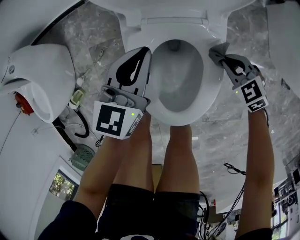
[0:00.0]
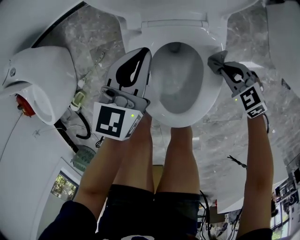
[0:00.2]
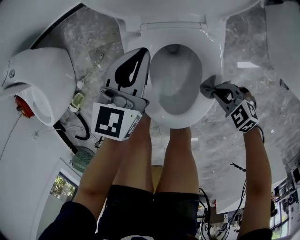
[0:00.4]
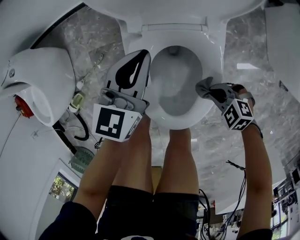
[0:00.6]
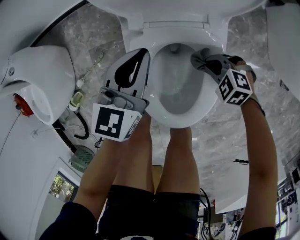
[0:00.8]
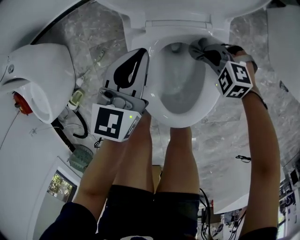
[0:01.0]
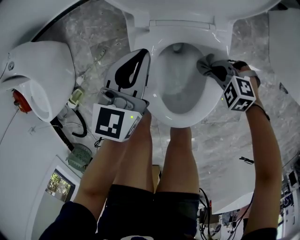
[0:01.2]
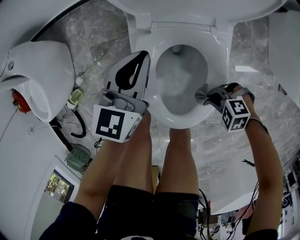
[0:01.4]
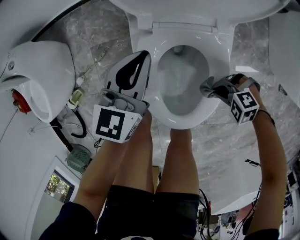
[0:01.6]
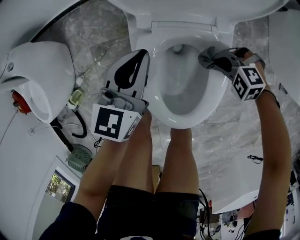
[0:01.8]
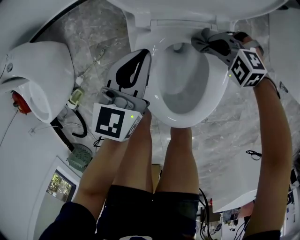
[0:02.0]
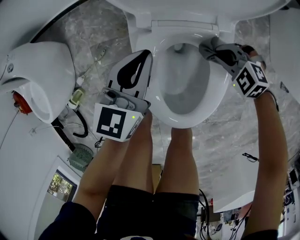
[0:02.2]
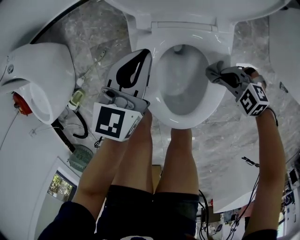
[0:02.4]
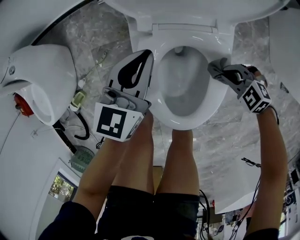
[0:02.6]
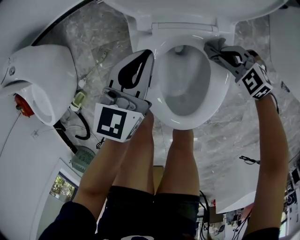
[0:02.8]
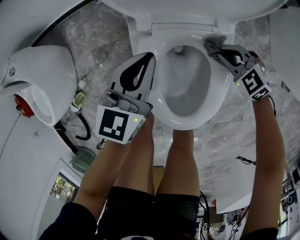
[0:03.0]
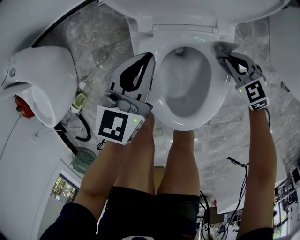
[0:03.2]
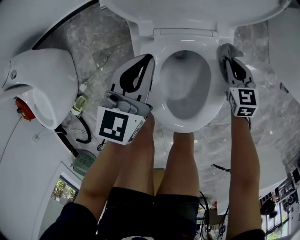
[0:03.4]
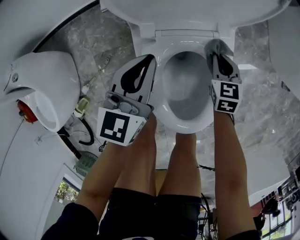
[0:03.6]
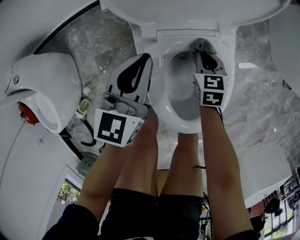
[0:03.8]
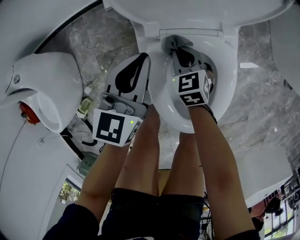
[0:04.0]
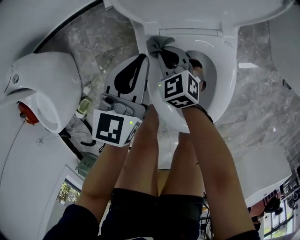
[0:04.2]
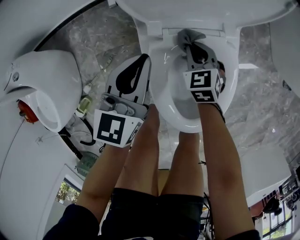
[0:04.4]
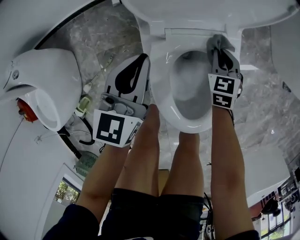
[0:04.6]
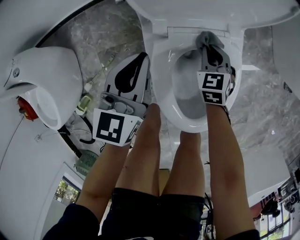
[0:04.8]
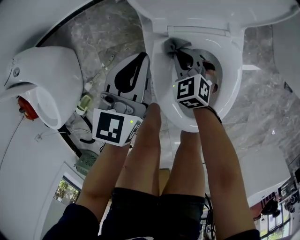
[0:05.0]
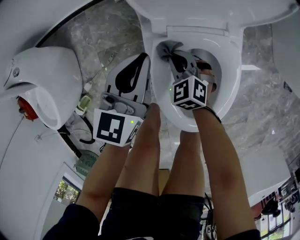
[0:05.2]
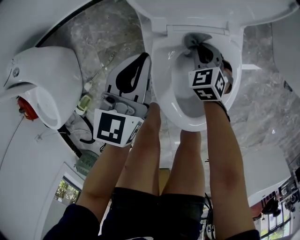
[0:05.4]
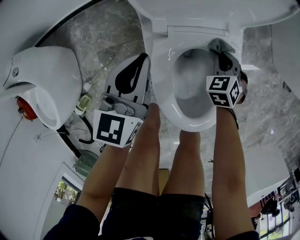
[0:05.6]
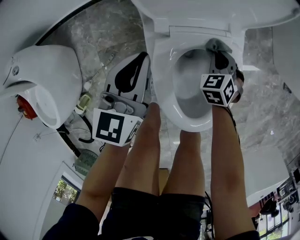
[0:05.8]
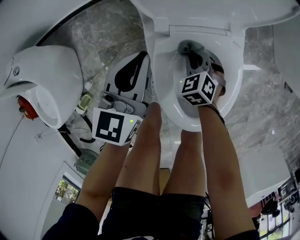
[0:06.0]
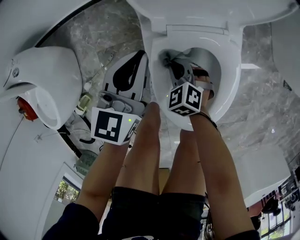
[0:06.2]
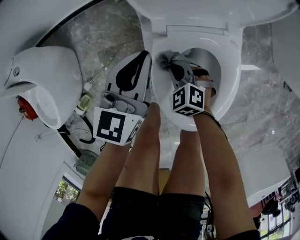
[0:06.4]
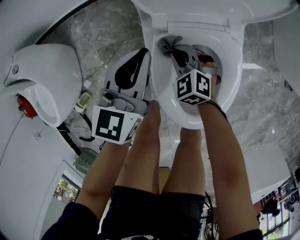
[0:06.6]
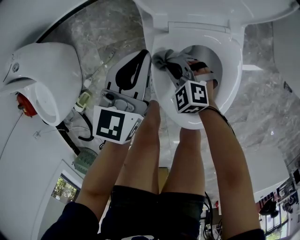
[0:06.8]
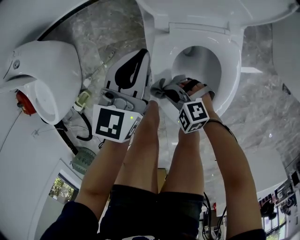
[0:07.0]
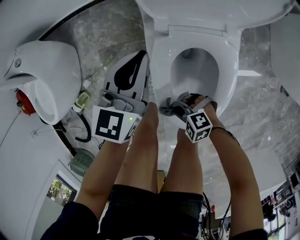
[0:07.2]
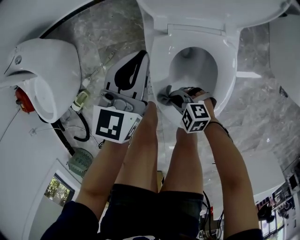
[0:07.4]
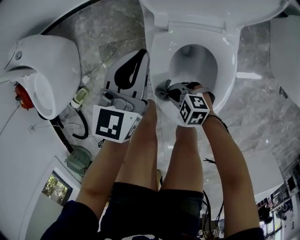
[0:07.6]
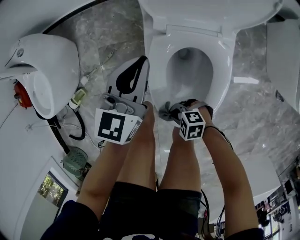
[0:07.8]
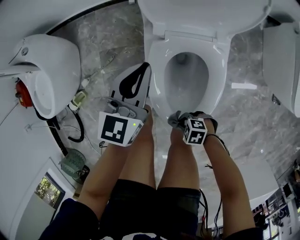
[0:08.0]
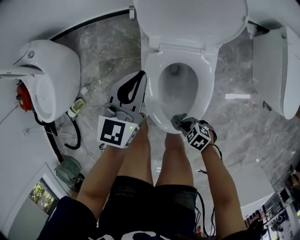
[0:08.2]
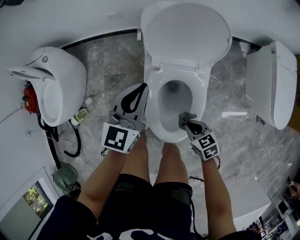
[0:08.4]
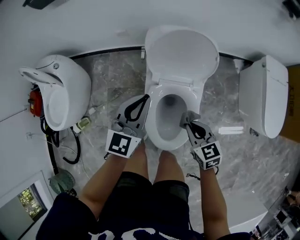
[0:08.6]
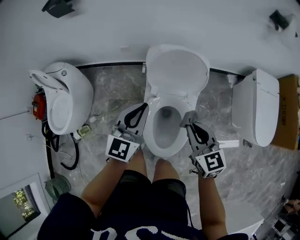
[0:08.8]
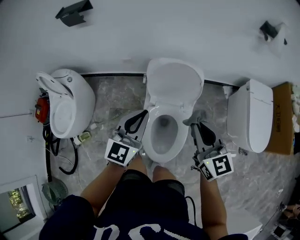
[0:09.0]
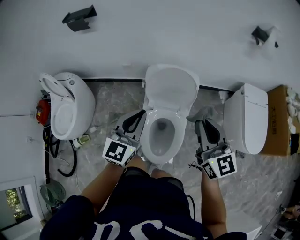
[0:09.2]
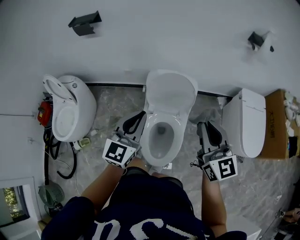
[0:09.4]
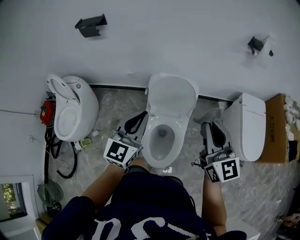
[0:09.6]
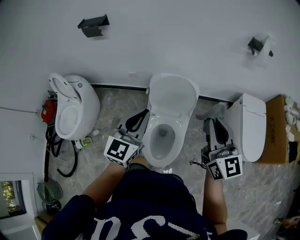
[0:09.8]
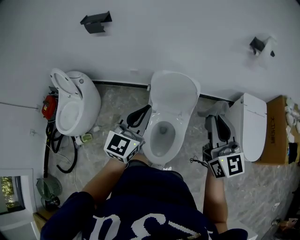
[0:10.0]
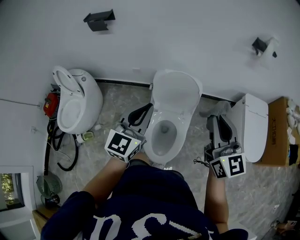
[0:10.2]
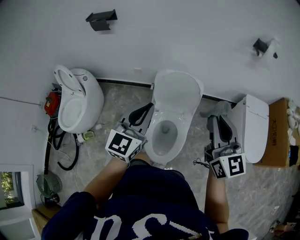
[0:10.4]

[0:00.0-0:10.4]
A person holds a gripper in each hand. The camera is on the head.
0:00.0 to 0:01.4: The right gripper shifts by some 15 cm, and rotates some 50 degrees.
0:01.4 to 0:03.0: The right gripper shifts by roughly 20 cm, and rotates approximately 40 degrees.
0:03.0 to 0:04.4: The left gripper ends up approximately 5 cm from where it was; the right gripper swivels roughly 40 degrees.
0:04.4 to 0:06.0: The right gripper moves left and right over some 15 cm, changing direction 3 times.
0:06.0 to 0:07.4: The right gripper changes place by approximately 25 cm, and changes its angle by some 50 degrees.
0:07.4 to 0:09.0: The right gripper travels upward by some 60 cm, and angles its fingers upward, by approximately 40 degrees, while the left gripper goes roughly 40 cm upward.
0:09.0 to 0:10.4: Both grippers move upward and backward, about 15 cm.

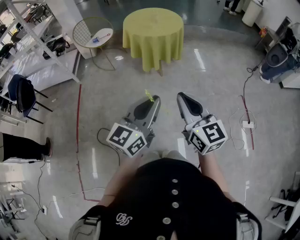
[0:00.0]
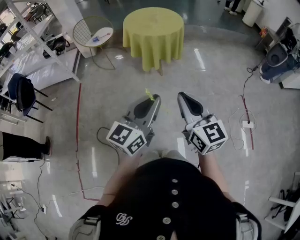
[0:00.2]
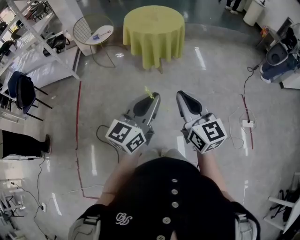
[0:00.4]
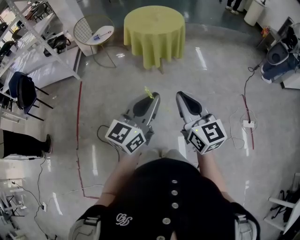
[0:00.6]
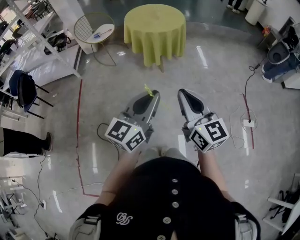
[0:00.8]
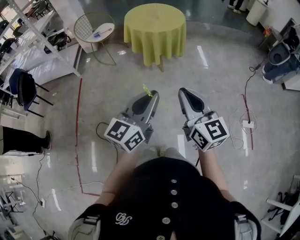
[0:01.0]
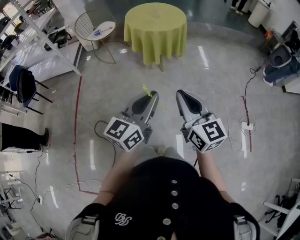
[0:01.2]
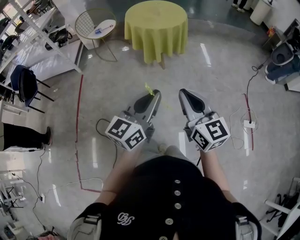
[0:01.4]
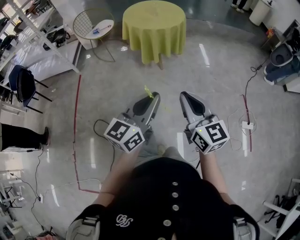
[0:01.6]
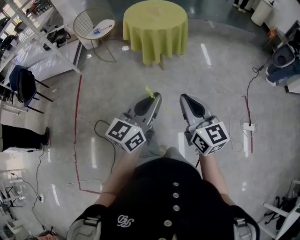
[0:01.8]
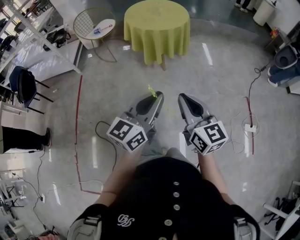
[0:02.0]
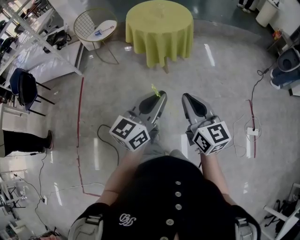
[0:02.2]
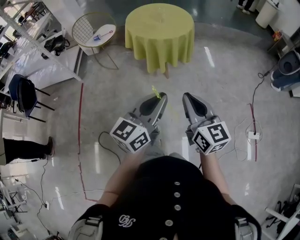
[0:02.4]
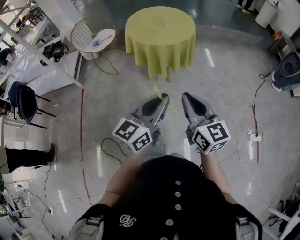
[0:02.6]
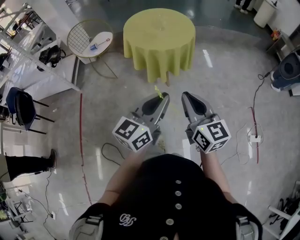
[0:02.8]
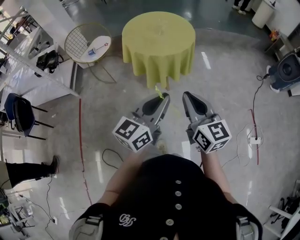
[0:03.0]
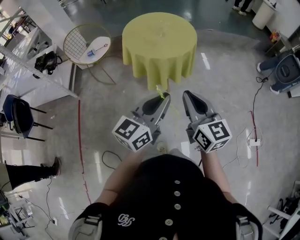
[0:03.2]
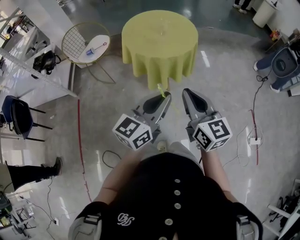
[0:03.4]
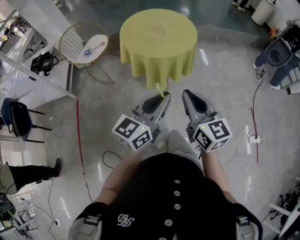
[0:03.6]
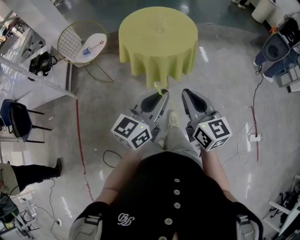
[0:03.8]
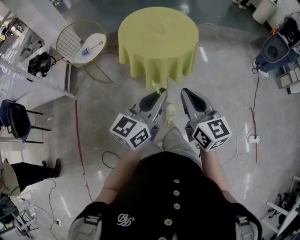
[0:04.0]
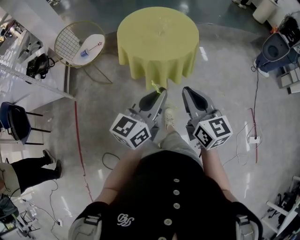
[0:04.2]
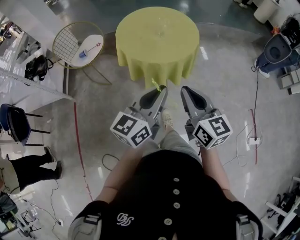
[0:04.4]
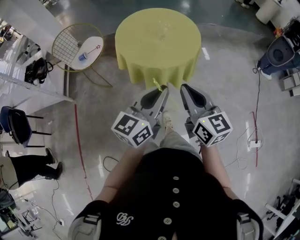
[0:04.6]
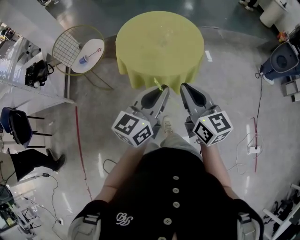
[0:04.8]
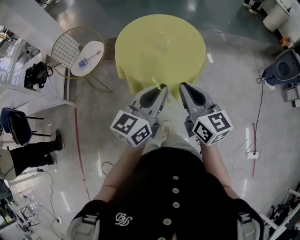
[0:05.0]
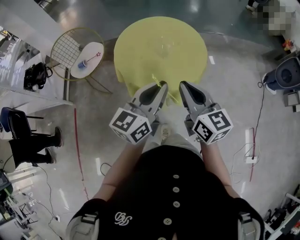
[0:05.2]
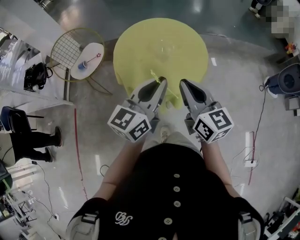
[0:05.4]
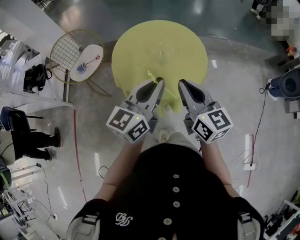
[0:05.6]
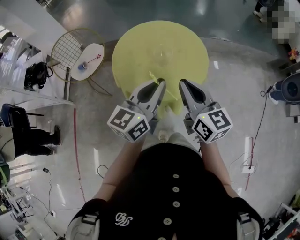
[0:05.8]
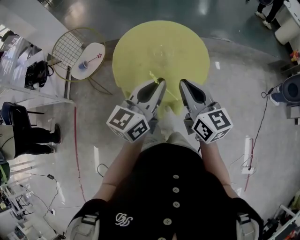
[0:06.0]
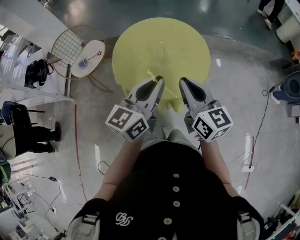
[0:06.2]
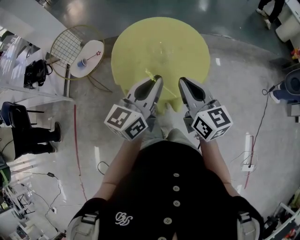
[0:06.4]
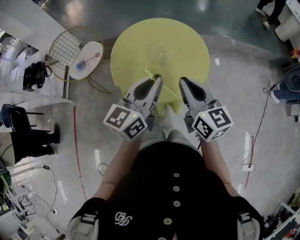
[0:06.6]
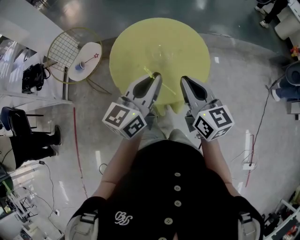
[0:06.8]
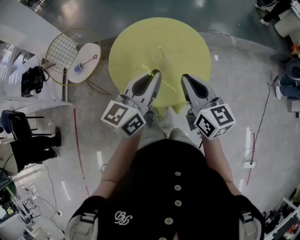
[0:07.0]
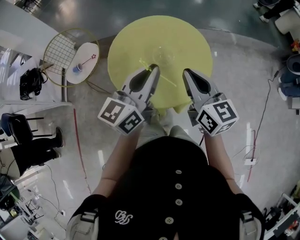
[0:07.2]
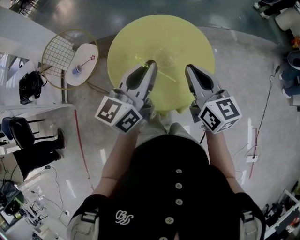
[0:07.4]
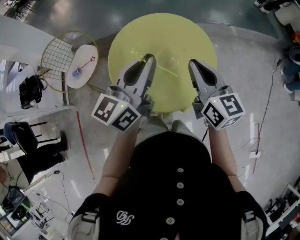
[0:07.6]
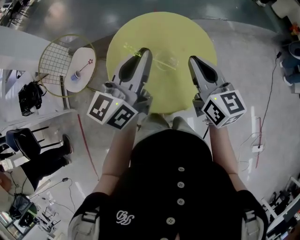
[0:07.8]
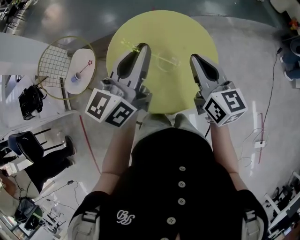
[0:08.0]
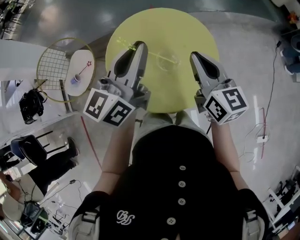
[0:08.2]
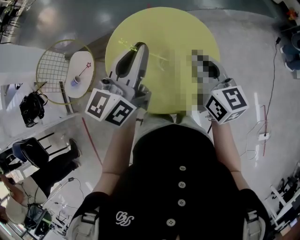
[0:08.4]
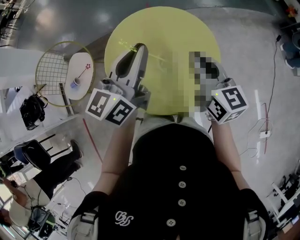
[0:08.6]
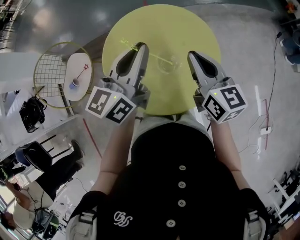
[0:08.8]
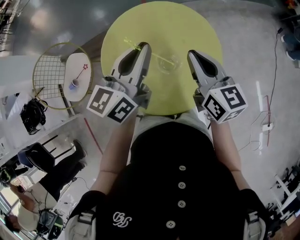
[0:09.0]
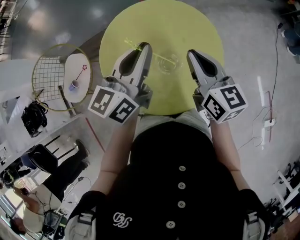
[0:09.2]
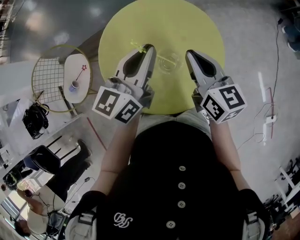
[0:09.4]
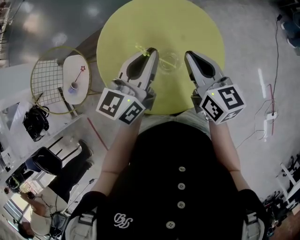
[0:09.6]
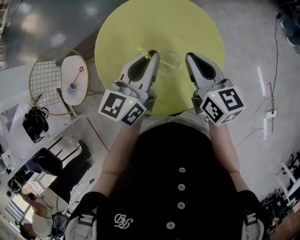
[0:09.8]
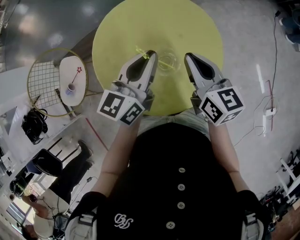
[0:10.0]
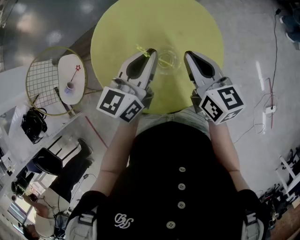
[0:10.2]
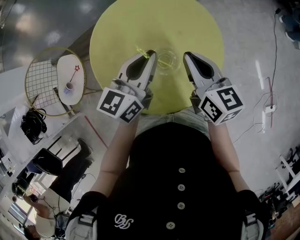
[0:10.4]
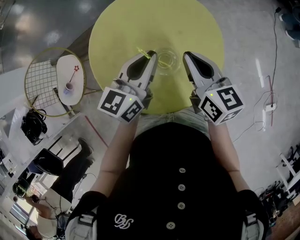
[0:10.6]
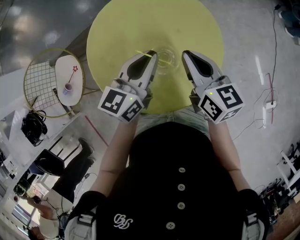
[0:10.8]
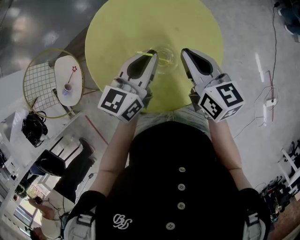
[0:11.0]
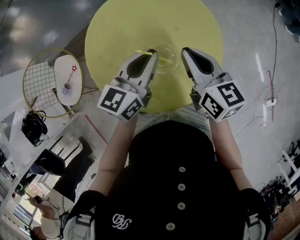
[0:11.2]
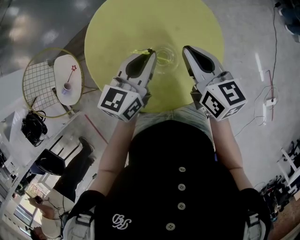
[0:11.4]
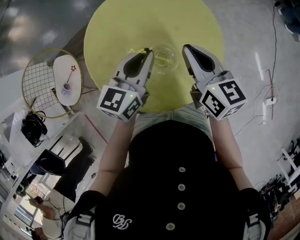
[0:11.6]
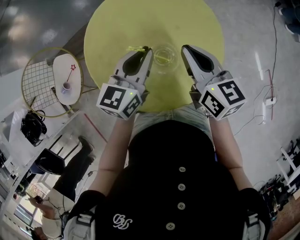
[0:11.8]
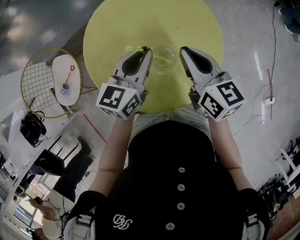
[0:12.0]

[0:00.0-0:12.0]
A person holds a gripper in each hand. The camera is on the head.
0:00.0 to 0:01.6: The right gripper travels to the right by about 5 cm; the left gripper changes place by roughly 5 cm.
0:01.6 to 0:03.0: The grippers both shift forward by approximately 30 cm.
0:03.0 to 0:04.4: Both grippers travel together forward, some 15 cm.
0:04.4 to 0:06.0: Both grippers move forward, roughly 25 cm.
0:06.0 to 0:07.6: The right gripper travels forward by roughly 15 cm; the left gripper heads forward and to the left, covering approximately 15 cm.
0:07.6 to 0:09.0: The right gripper heads forward, covering about 5 cm, while the left gripper shifts approximately 10 cm forward.
0:09.0 to 0:10.4: The right gripper is displaced downward by about 5 cm. Meanwhile the left gripper is displaced downward by roughly 10 cm.
0:10.4 to 0:12.0: The grippers move only a little.

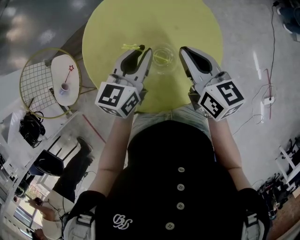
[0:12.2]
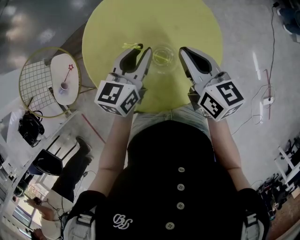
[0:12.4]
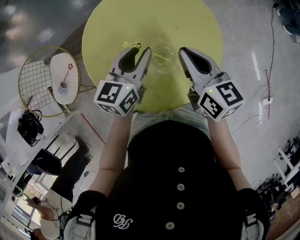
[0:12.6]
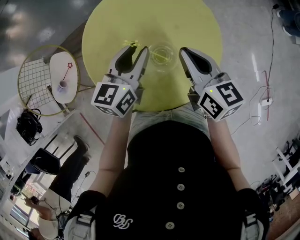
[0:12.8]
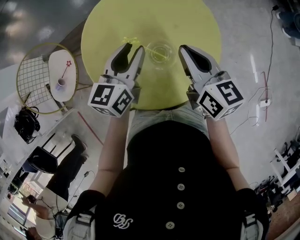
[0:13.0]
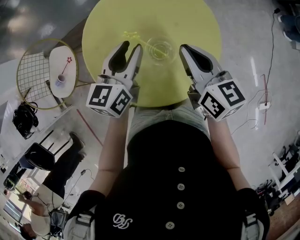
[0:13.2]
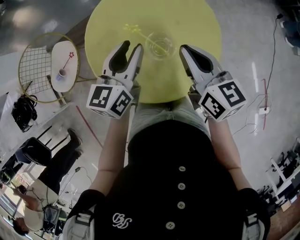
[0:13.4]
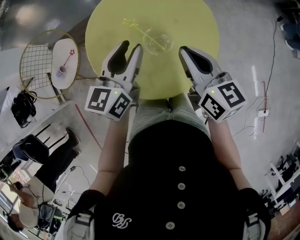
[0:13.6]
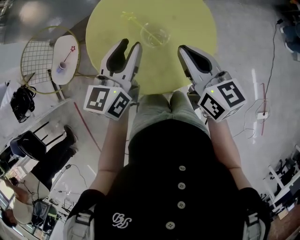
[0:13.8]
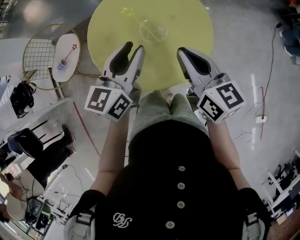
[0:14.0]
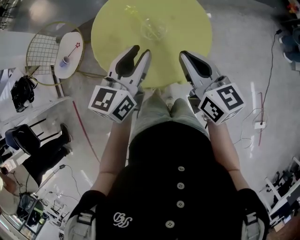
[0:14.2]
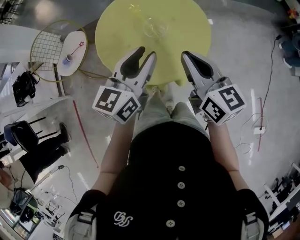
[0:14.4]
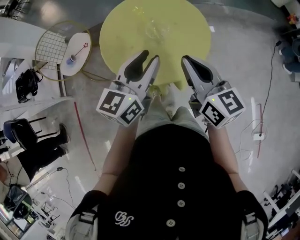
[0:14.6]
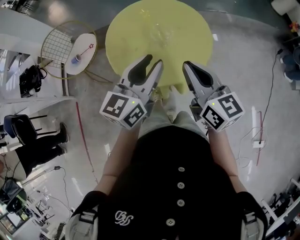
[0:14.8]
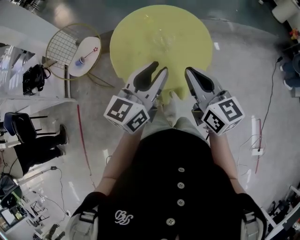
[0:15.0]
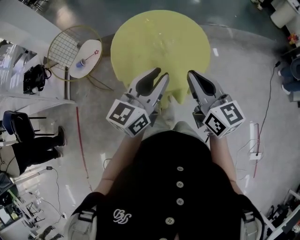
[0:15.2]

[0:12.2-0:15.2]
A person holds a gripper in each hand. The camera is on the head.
0:12.2 to 0:13.8: The left gripper moves upward and backward, some 10 cm. Meanwhile the right gripper is displaced backward and upward by some 10 cm.
0:13.8 to 0:15.2: The right gripper travels backward and upward by some 15 cm, while the left gripper is displaced backward by about 20 cm.
